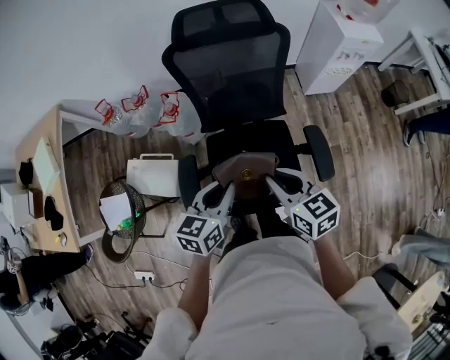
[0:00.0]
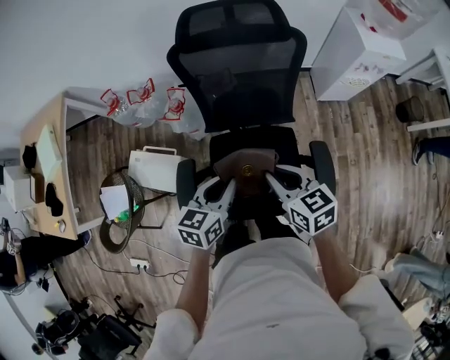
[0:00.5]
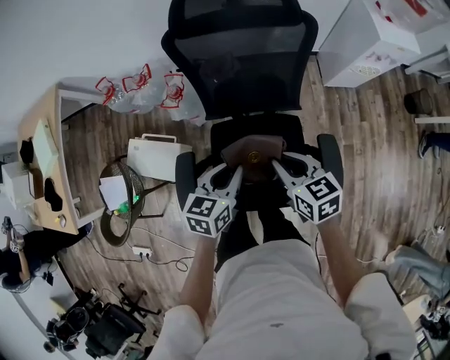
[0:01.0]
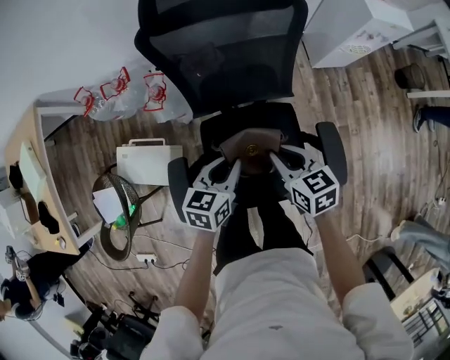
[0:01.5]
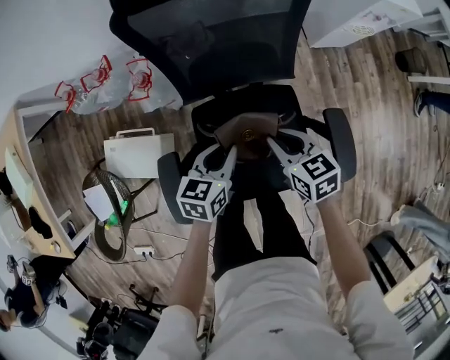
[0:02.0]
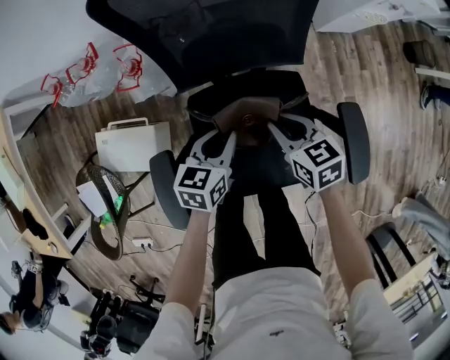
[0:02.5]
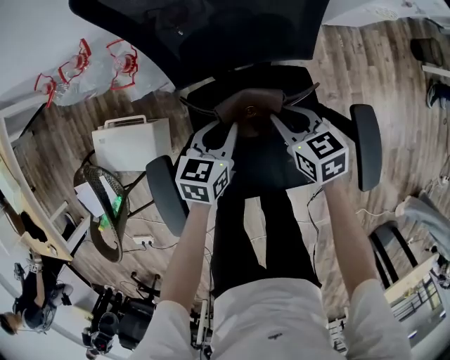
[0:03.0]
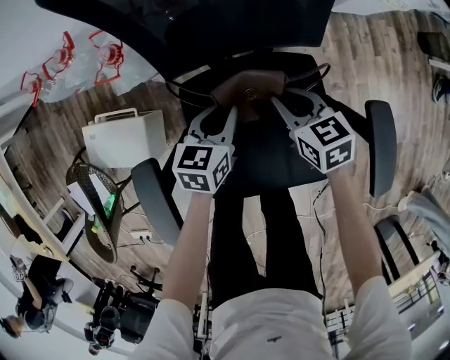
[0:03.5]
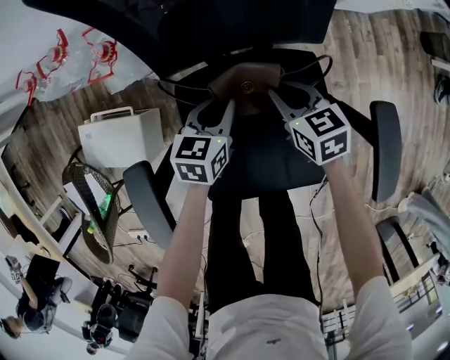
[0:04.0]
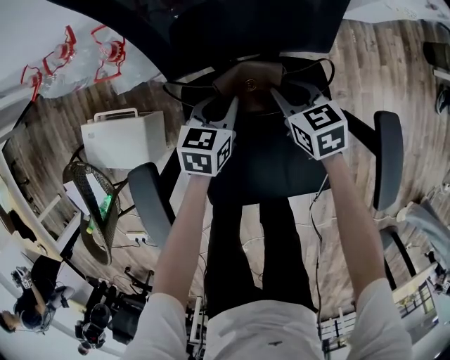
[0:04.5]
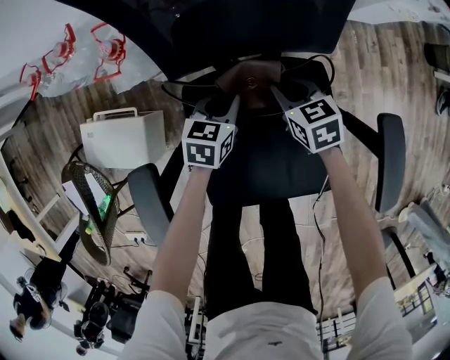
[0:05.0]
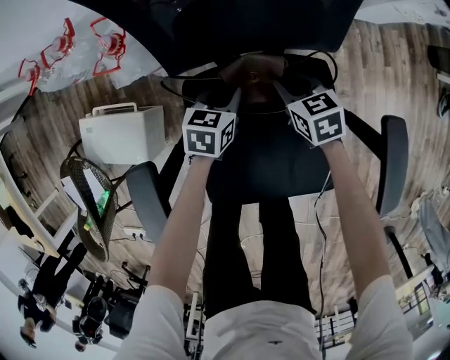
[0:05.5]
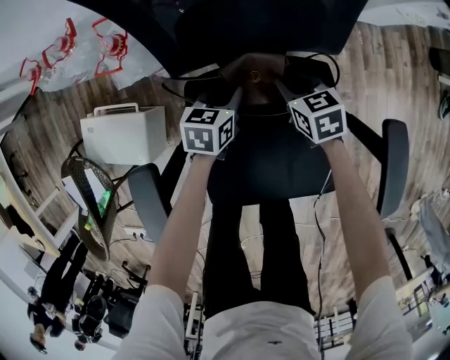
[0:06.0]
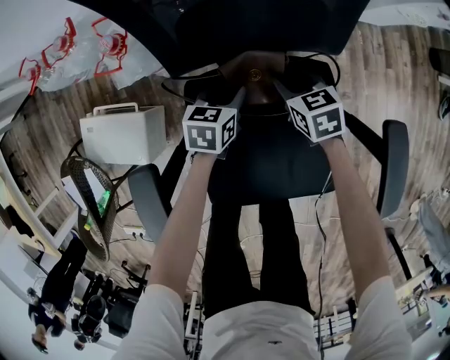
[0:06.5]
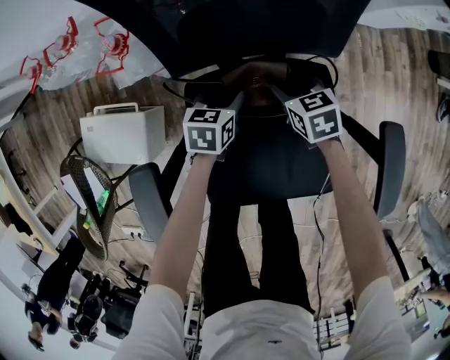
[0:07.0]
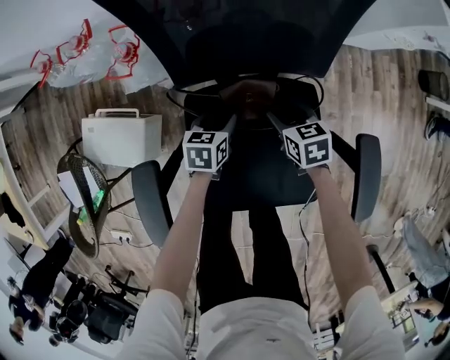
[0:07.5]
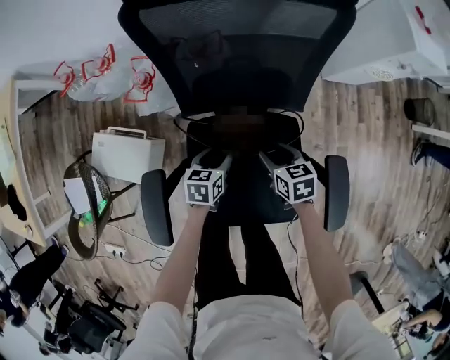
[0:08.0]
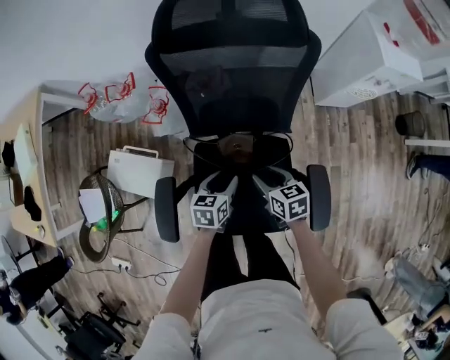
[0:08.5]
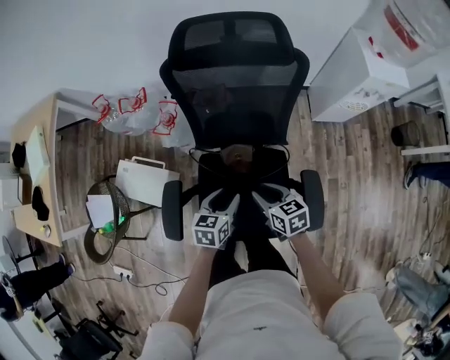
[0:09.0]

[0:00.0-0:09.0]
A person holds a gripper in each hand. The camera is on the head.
0:00.0 to 0:02.0: The grippers both shift downward and forward by some 25 cm.
0:02.0 to 0:04.5: The left gripper heads downward, covering some 20 cm; the right gripper heads downward and forward, covering roughly 25 cm.
0:04.5 to 0:07.0: The right gripper shifts by some 5 cm, and opens, while the left gripper moves downward, roughly 5 cm, and opens up.
0:07.0 to 0:09.0: The two grippers go roughly 30 cm upward and backward.

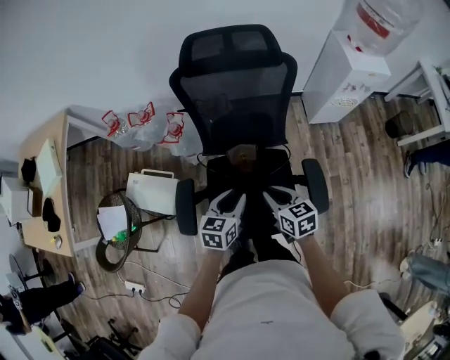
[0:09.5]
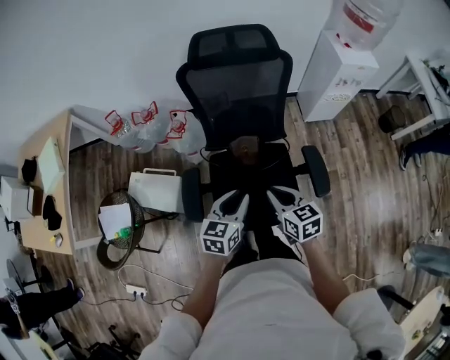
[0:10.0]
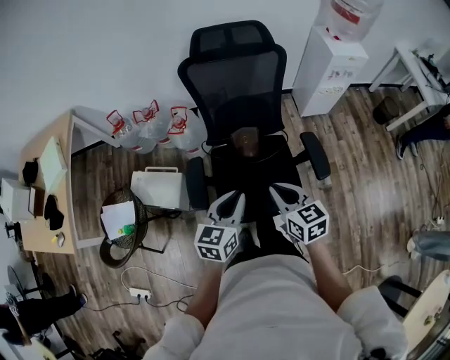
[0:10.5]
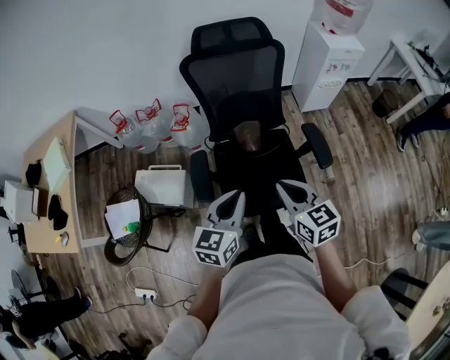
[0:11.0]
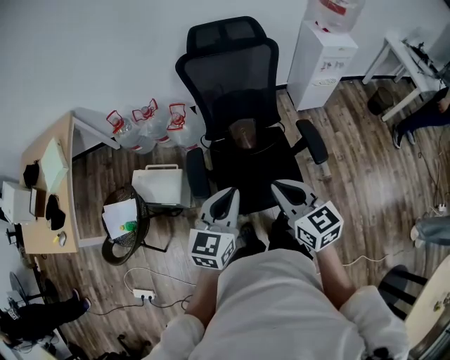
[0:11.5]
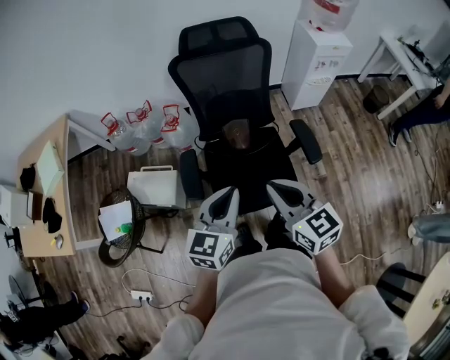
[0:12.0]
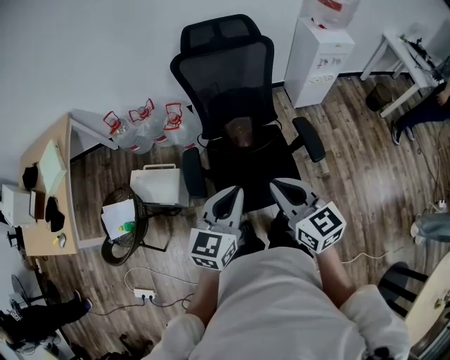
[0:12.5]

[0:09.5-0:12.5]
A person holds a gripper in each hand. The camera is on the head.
0:09.5 to 0:11.0: The right gripper is displaced backward and upward by some 20 cm. The left gripper goes some 25 cm backward, upward and to the left, and closes its fingers.
0:11.0 to 0:12.5: The right gripper moves upward, approximately 5 cm. Meanwhile the left gripper changes place by about 5 cm.

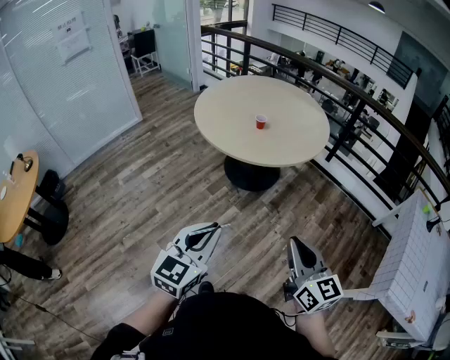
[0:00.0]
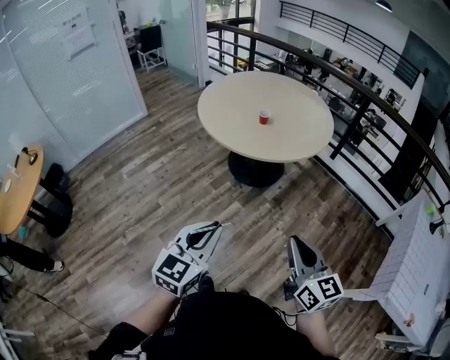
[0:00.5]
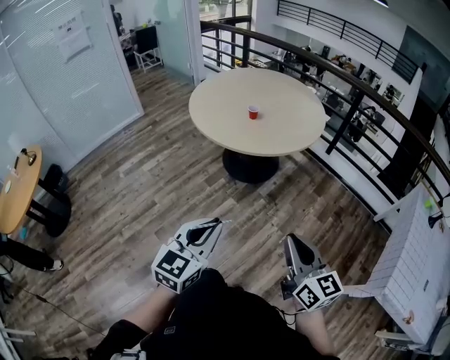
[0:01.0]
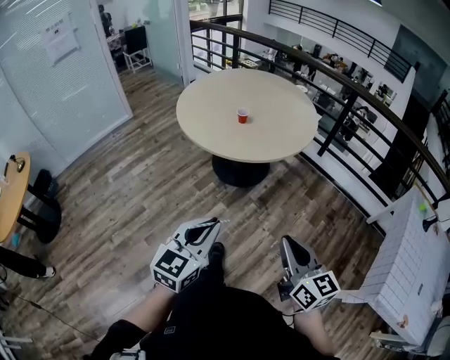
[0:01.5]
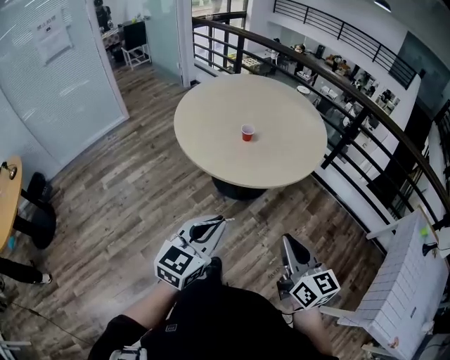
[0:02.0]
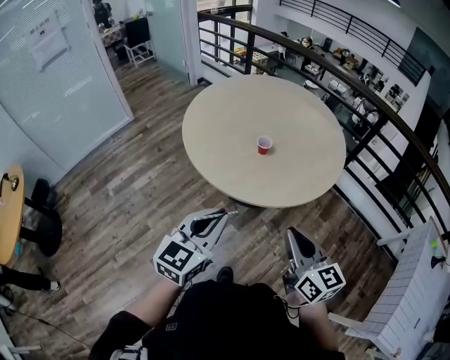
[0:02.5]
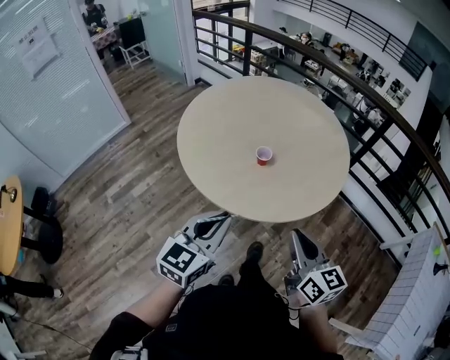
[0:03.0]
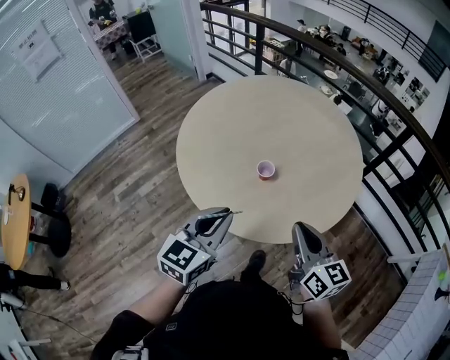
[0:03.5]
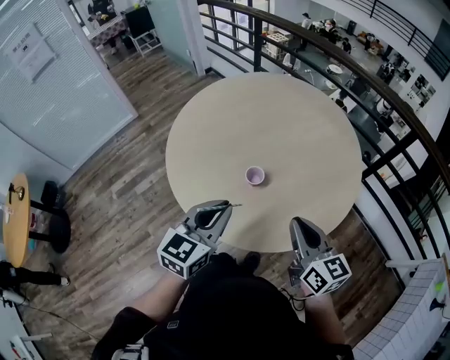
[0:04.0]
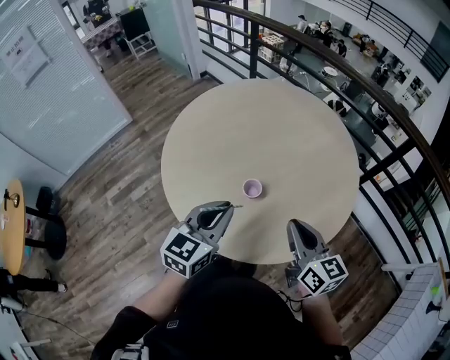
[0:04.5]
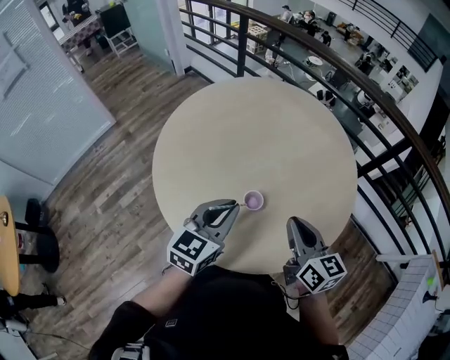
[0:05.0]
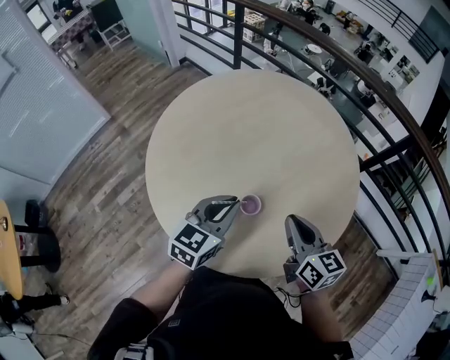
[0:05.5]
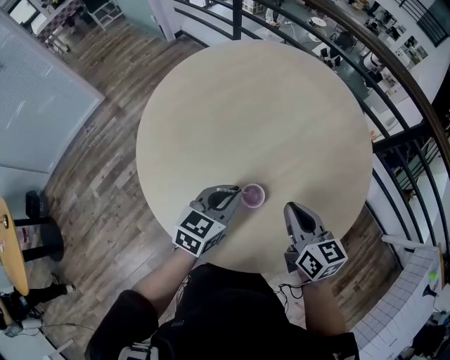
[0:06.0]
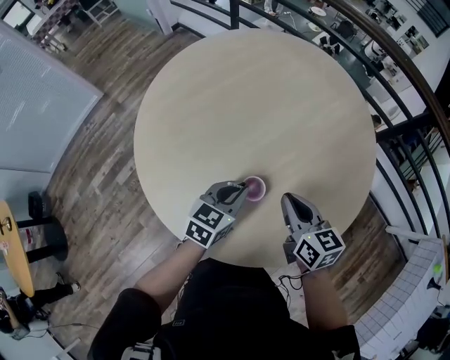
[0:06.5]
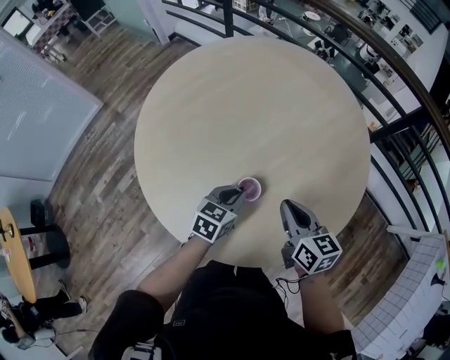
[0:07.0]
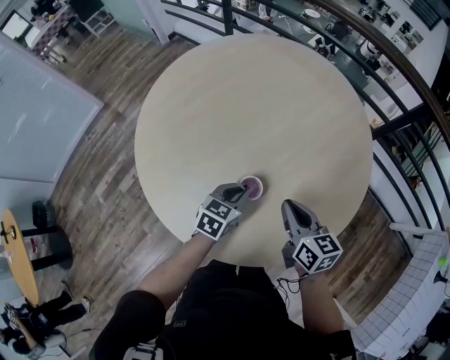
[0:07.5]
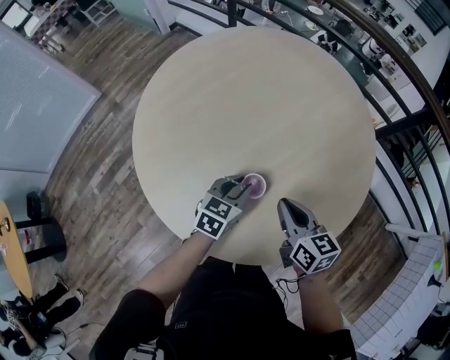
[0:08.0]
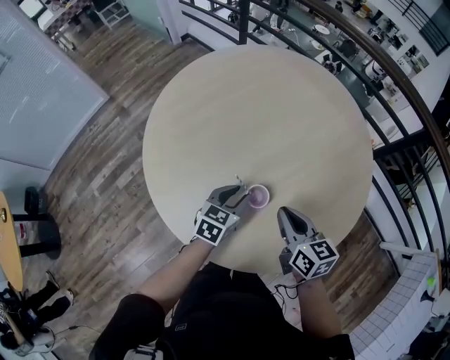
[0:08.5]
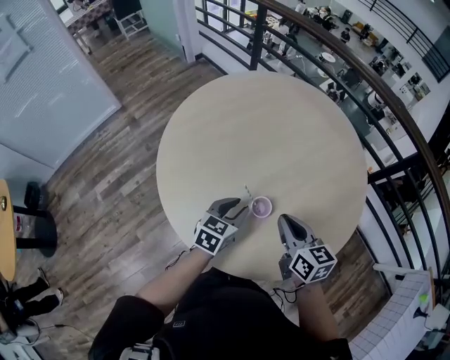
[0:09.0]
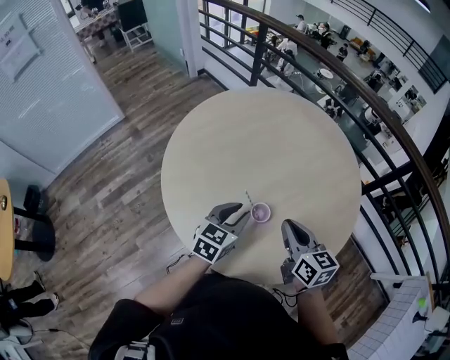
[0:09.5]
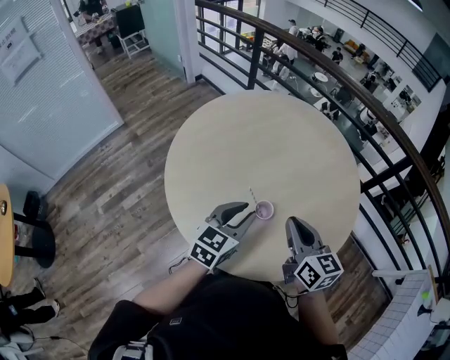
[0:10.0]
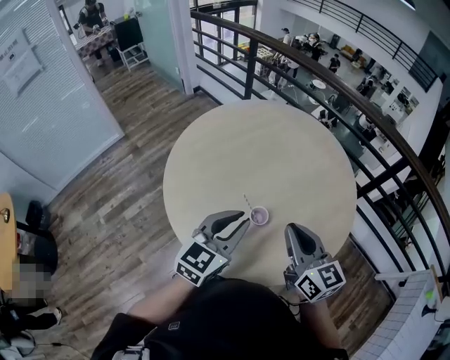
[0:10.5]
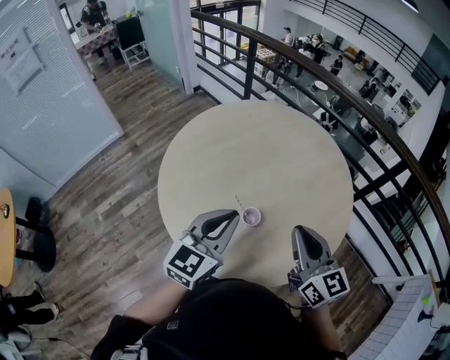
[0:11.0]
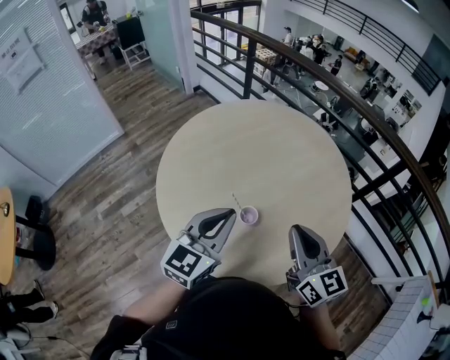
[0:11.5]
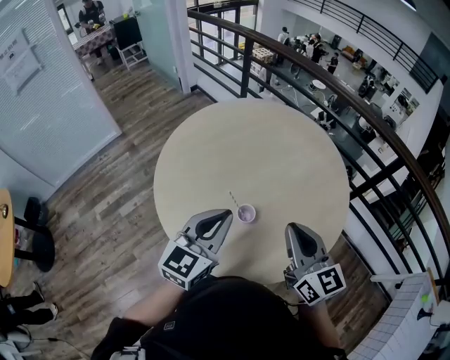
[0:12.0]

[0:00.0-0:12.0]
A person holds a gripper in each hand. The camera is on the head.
0:00.0 to 0:02.0: Both grippers move forward, some 20 cm.
0:02.0 to 0:04.0: The grippers both shift forward by roughly 35 cm.
0:04.0 to 0:06.0: Both grippers travel together forward and downward, approximately 25 cm.
0:06.0 to 0:08.0: The left gripper is displaced downward by roughly 10 cm.
0:08.0 to 0:10.0: Both grippers move upward, roughly 15 cm.
0:10.0 to 0:12.0: The left gripper moves upward, roughly 10 cm, and closes its fingers; the right gripper heads upward and to the right, covering some 10 cm.

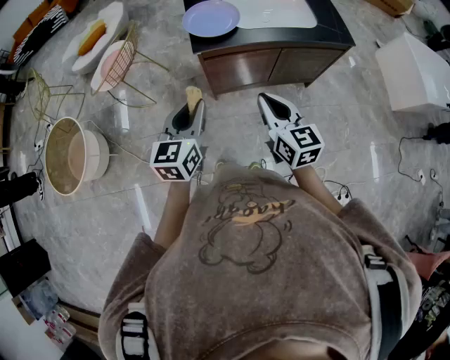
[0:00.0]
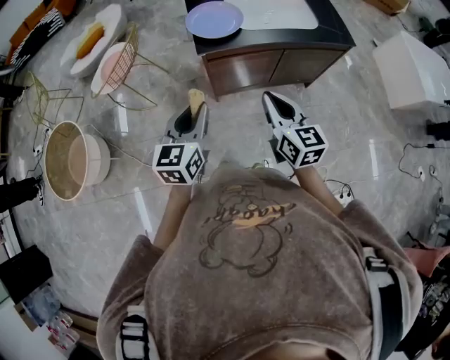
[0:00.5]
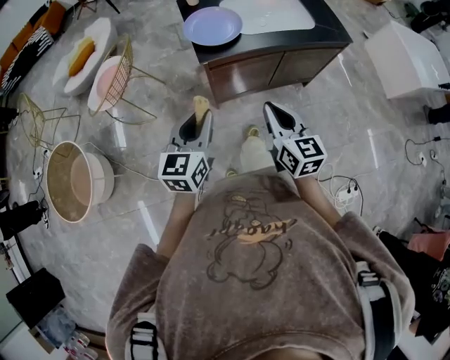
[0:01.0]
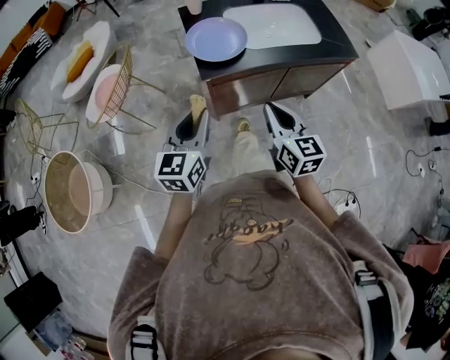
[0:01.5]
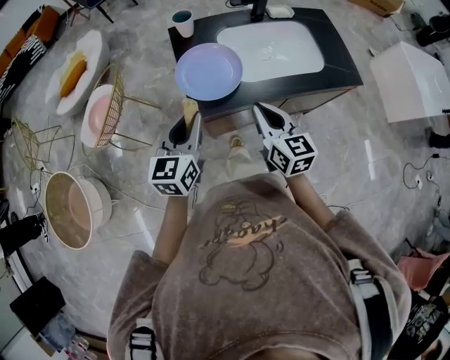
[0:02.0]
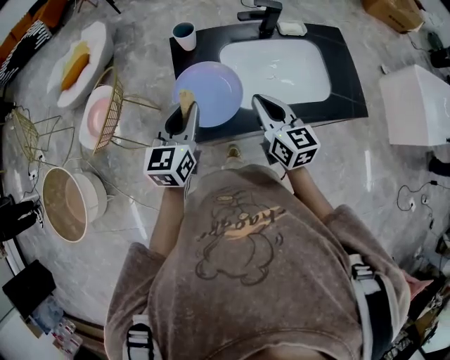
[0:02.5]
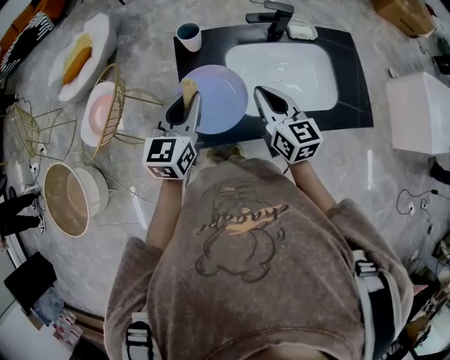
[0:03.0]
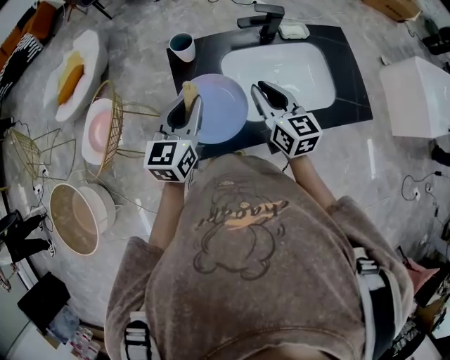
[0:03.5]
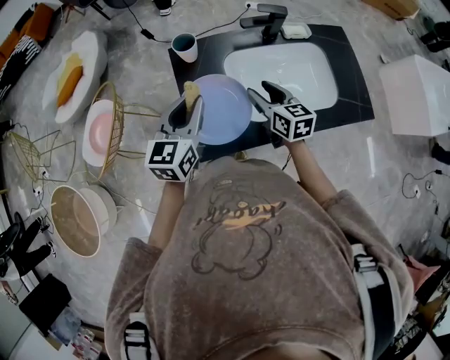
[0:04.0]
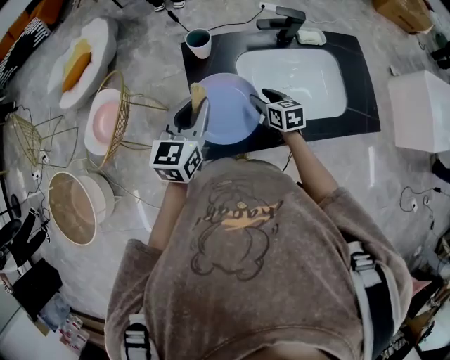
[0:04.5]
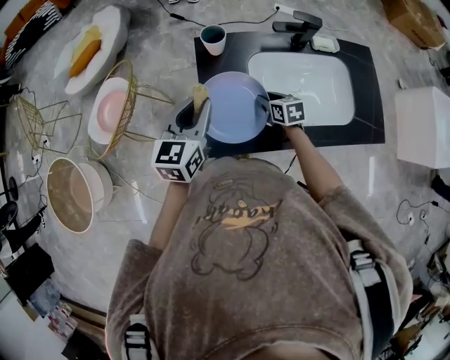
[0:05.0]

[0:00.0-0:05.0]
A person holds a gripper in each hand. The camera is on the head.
0:00.0 to 0:02.5: The pair of grippers is taken forward, some 40 cm.
0:02.5 to 0:05.0: The right gripper shifts about 25 cm downward and forward, points its fingers about 30 degrees further downward, and opens up, while the left gripper is displaced forward by some 10 cm.
